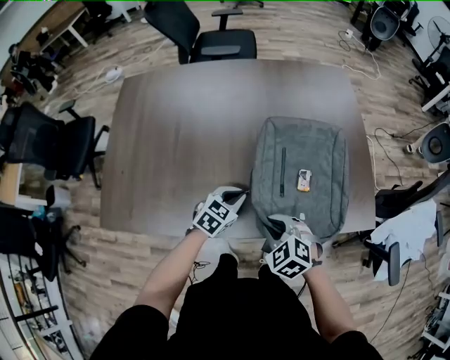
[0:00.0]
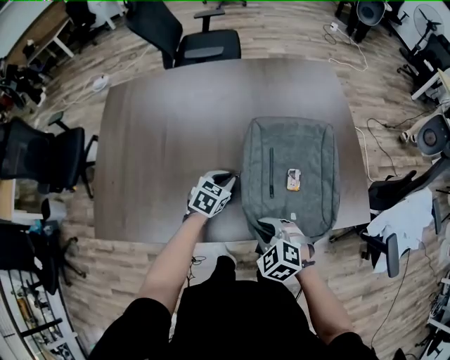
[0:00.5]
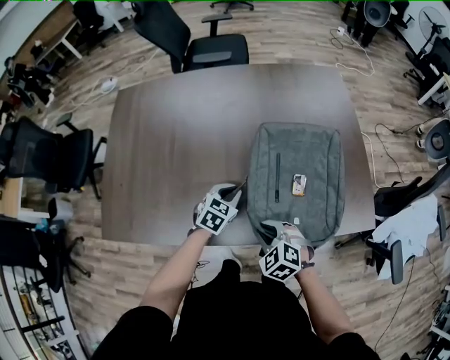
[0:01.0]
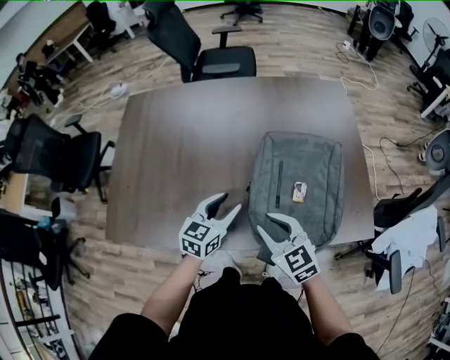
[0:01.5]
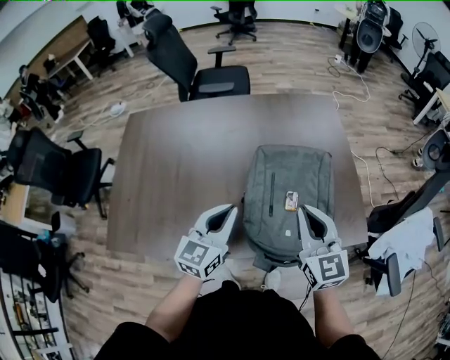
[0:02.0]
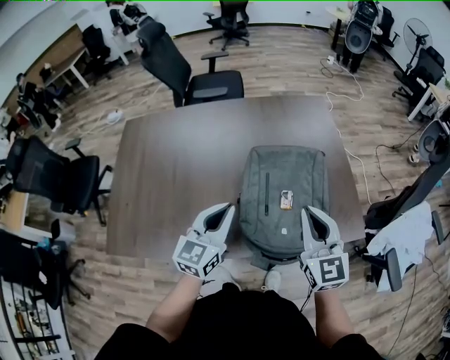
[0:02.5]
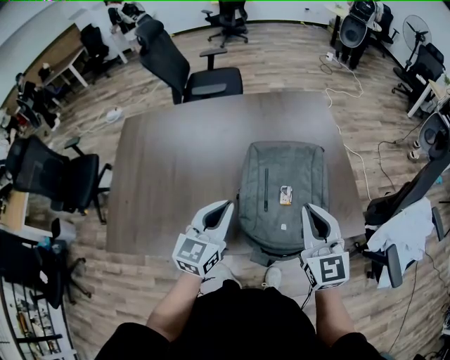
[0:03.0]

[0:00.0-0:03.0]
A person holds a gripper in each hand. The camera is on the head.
0:00.0 to 0:01.5: The grippers both shift upward by approximately 10 cm. The left gripper changes its angle by roughly 30 degrees, and opens its fingers; the right gripper changes its angle by roughly 30 degrees.
0:01.5 to 0:03.0: The right gripper goes roughly 20 cm upward and to the right, rotates roughly 40 degrees, and closes. The left gripper is displaced upward by roughly 10 cm, and closes.

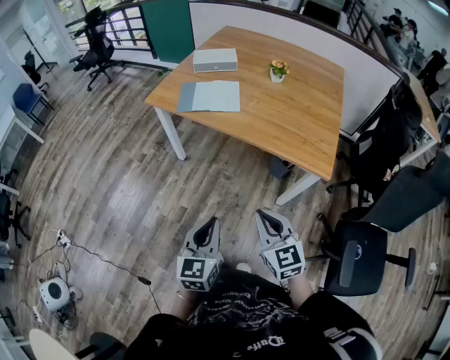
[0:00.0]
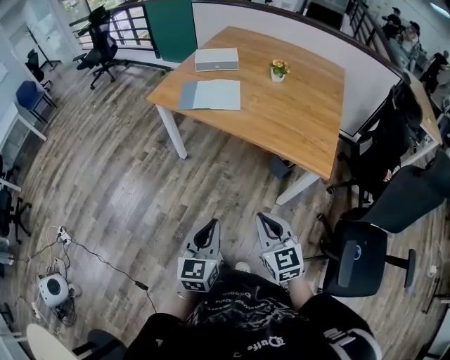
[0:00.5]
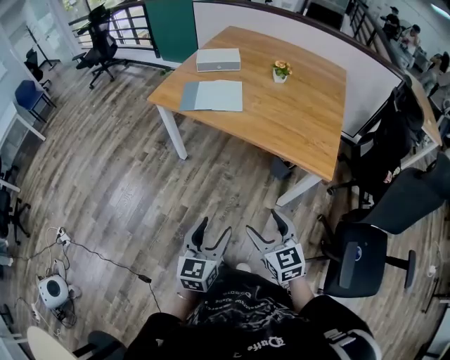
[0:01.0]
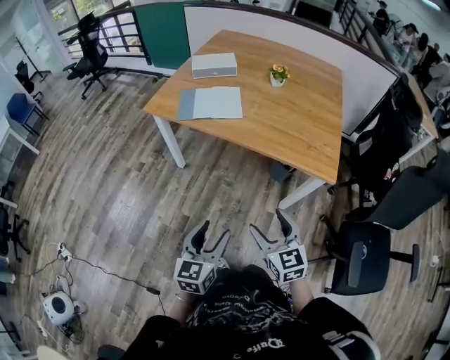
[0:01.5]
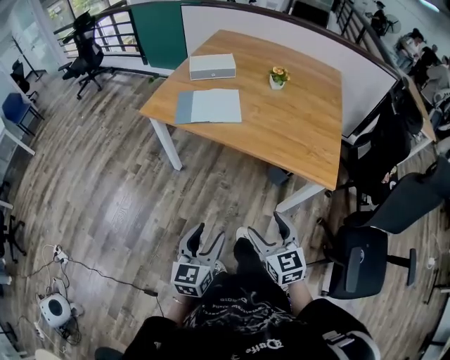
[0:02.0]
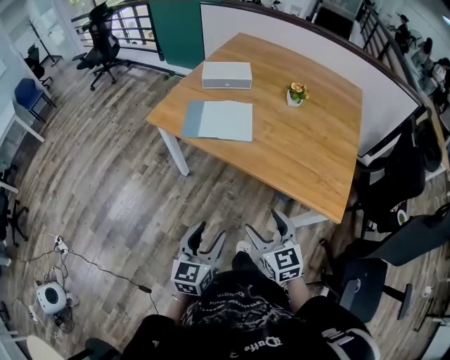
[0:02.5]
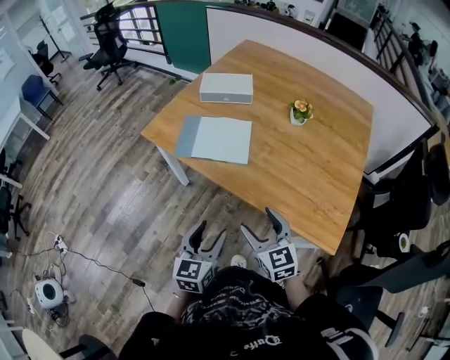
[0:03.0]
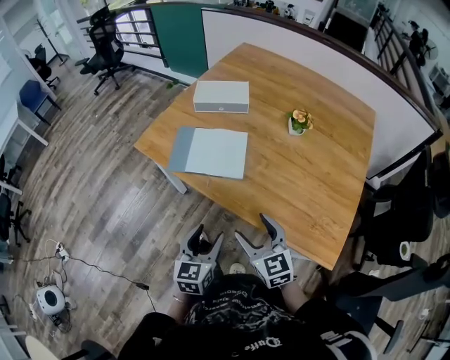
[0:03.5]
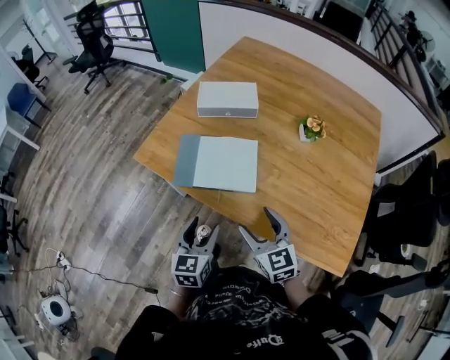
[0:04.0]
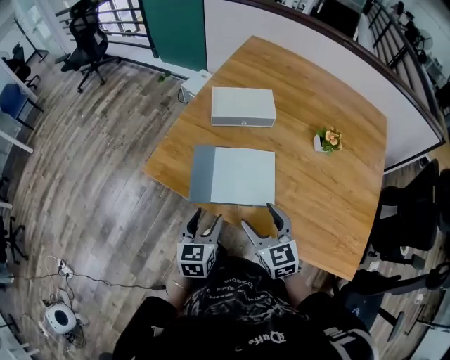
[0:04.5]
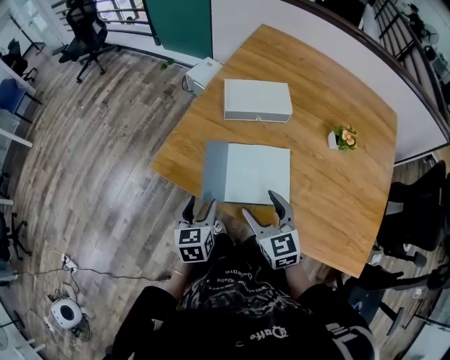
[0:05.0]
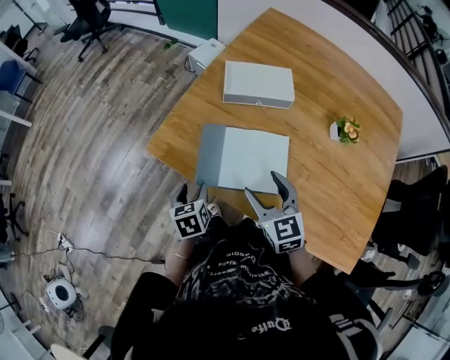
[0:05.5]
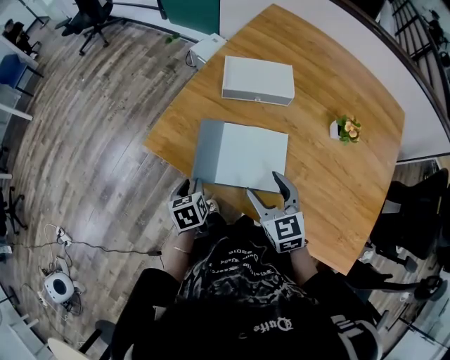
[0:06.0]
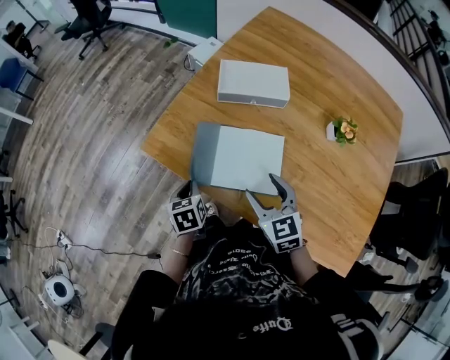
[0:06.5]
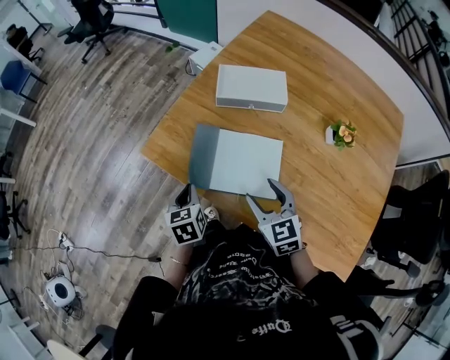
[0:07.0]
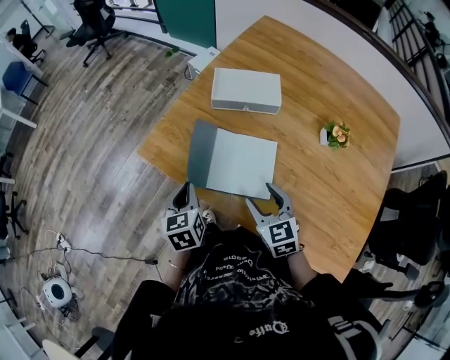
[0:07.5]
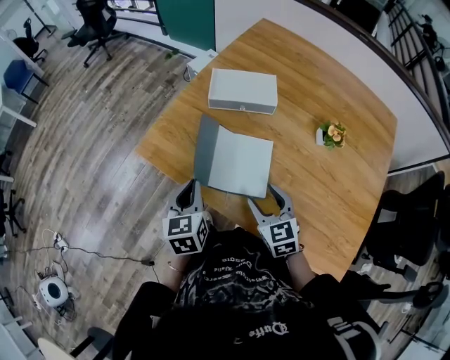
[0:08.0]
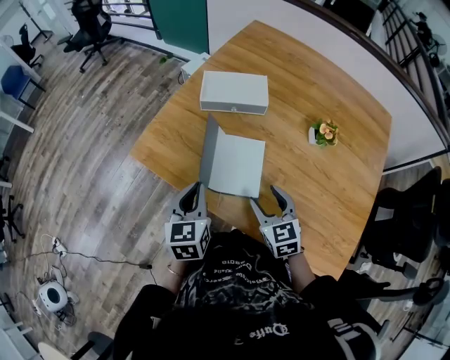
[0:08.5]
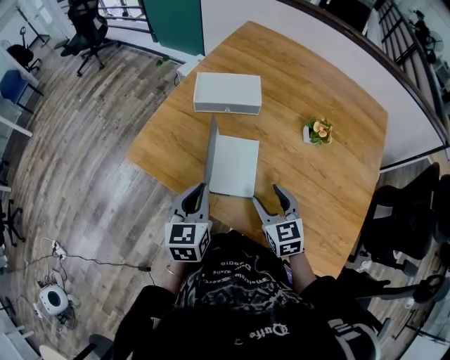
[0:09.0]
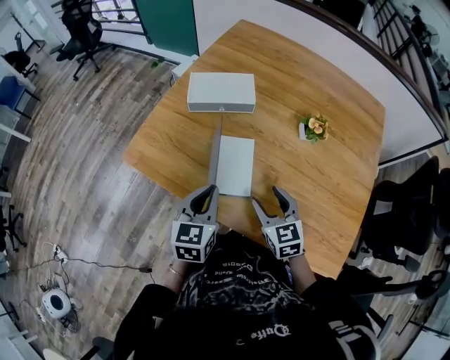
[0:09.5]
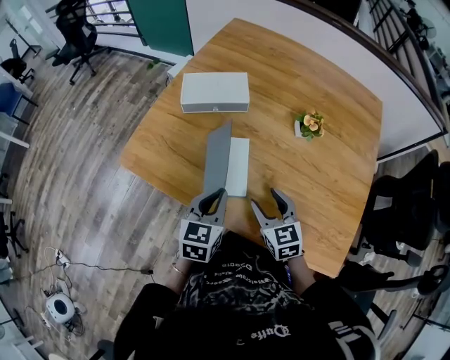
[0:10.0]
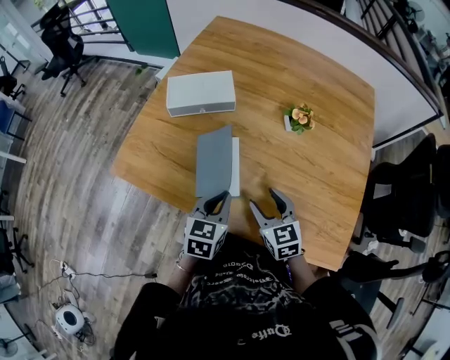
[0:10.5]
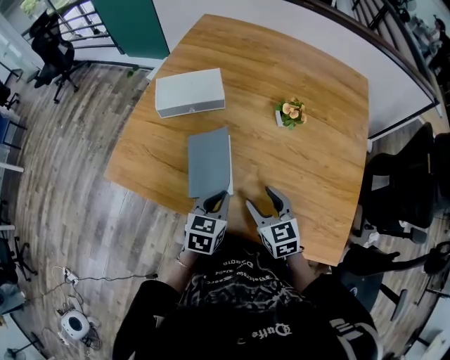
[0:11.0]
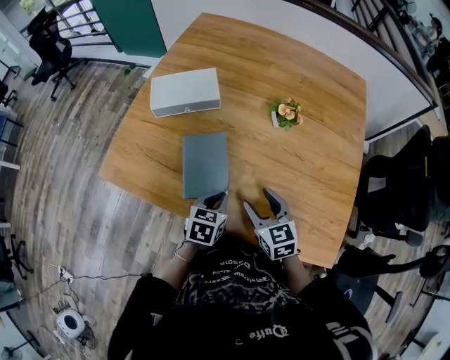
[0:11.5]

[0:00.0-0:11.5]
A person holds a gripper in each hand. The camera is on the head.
0:00.0 to 0:02.0: The right gripper moves roughly 5 cm, and opens; the left gripper moves forward, about 5 cm, and opens.
0:02.0 to 0:04.0: Both grippers move forward, approximately 35 cm.
0:04.0 to 0:06.0: The right gripper is displaced forward by some 15 cm; the left gripper shifts some 25 cm forward, to the left and downward, turns by about 40 degrees, and closes its fingers.
0:06.0 to 0:07.5: The left gripper heads upward, covering about 10 cm, and closes its fingers.
0:07.5 to 0:09.5: The right gripper moves to the right, about 10 cm. Meanwhile the left gripper travels to the right by roughly 15 cm, and changes its angle by about 30 degrees.
0:09.5 to 0:11.5: The left gripper moves downward and to the right, some 15 cm, and rotates roughly 30 degrees. The right gripper is displaced to the right by about 5 cm.

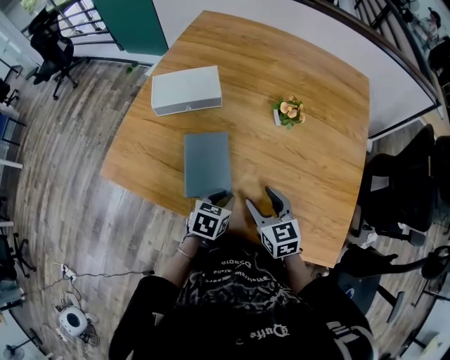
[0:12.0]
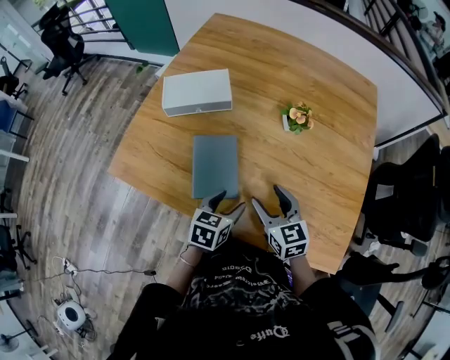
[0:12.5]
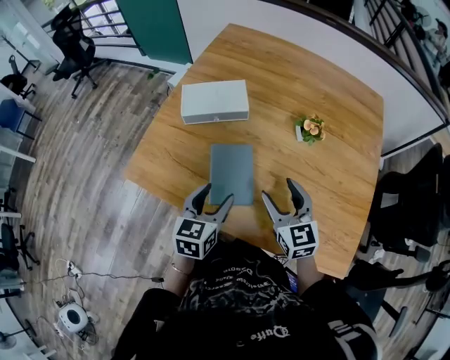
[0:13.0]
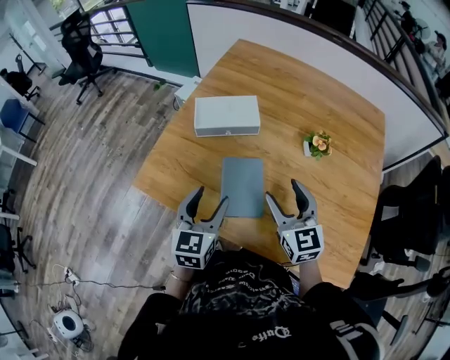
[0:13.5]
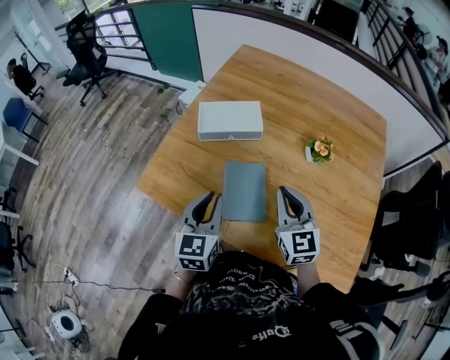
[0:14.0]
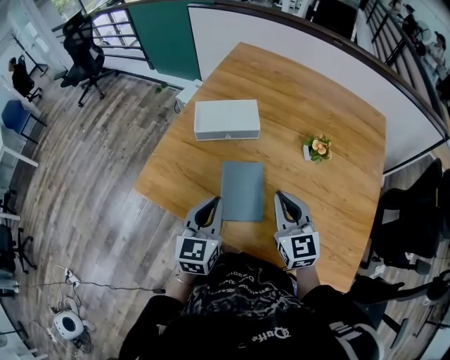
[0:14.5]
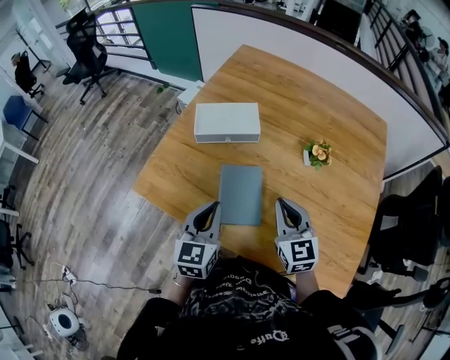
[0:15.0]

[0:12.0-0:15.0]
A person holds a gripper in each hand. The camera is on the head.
0:12.0 to 0:13.5: The left gripper goes roughly 25 cm upward and to the left, tilts its fingers about 30 degrees upward, and opens up. Meanwhile the right gripper is displaced upward, to the left and forward by about 15 cm.
0:13.5 to 0:15.0: The right gripper closes its fingers, while the left gripper closes up.

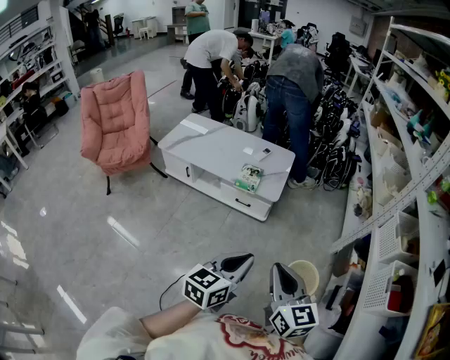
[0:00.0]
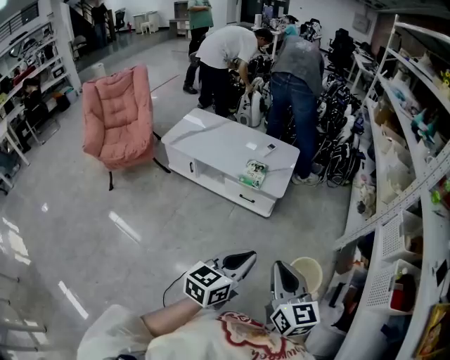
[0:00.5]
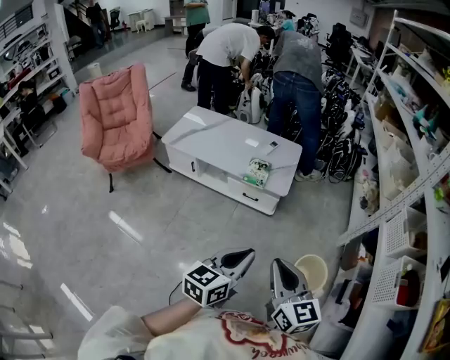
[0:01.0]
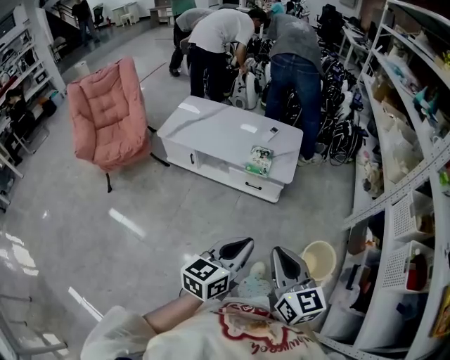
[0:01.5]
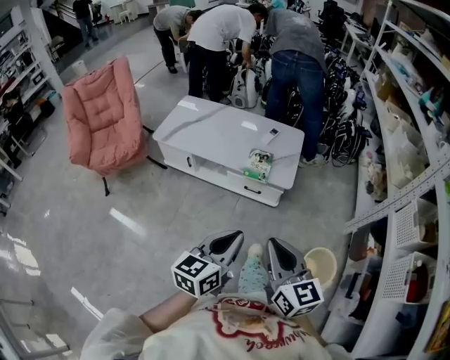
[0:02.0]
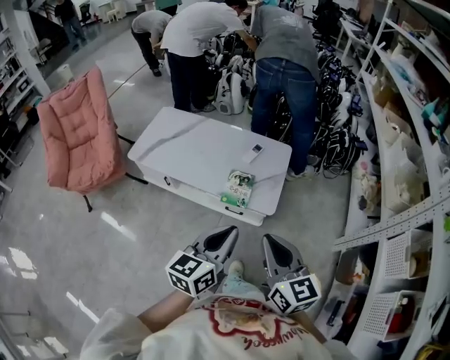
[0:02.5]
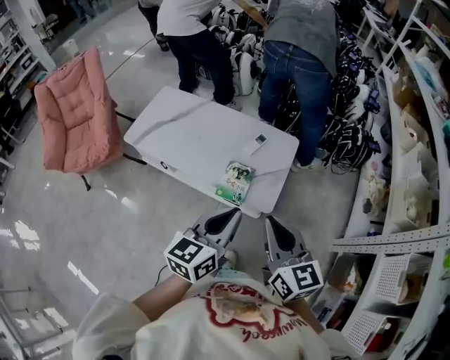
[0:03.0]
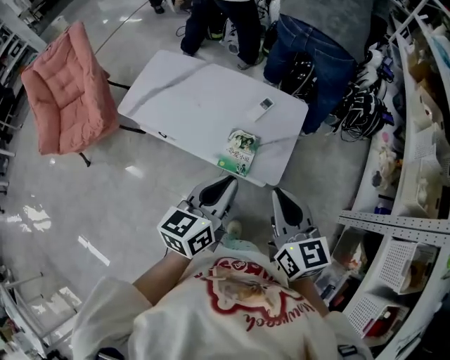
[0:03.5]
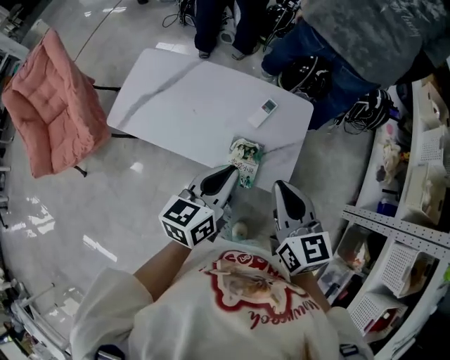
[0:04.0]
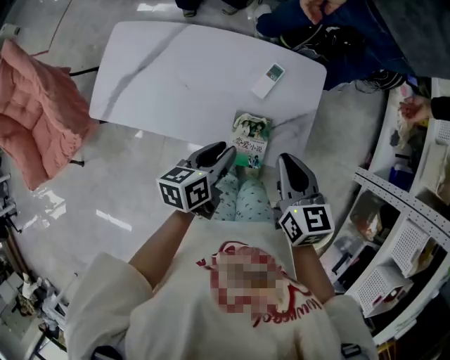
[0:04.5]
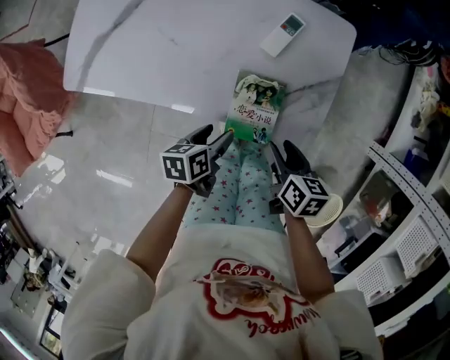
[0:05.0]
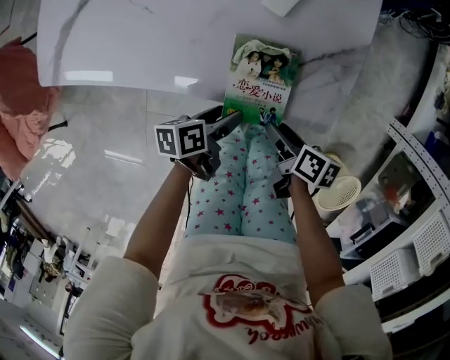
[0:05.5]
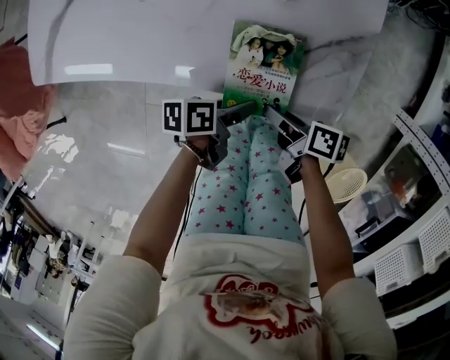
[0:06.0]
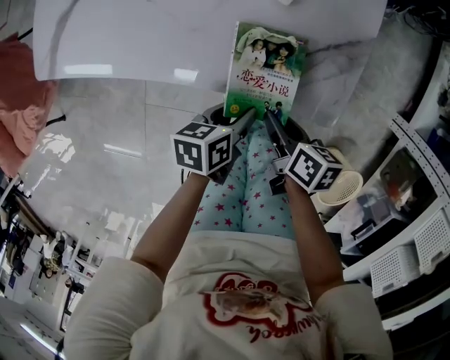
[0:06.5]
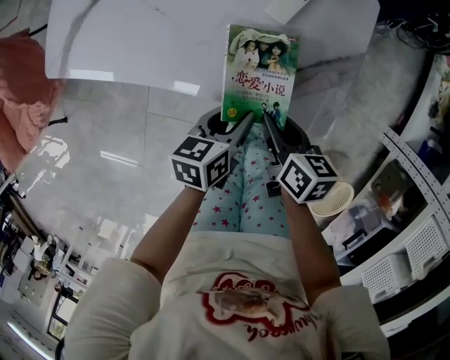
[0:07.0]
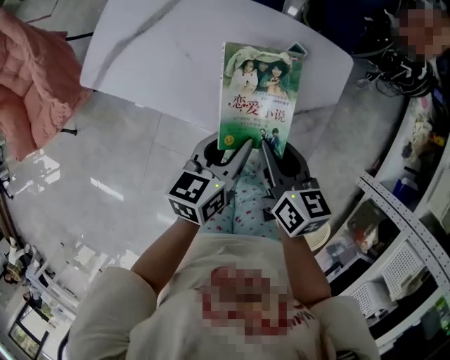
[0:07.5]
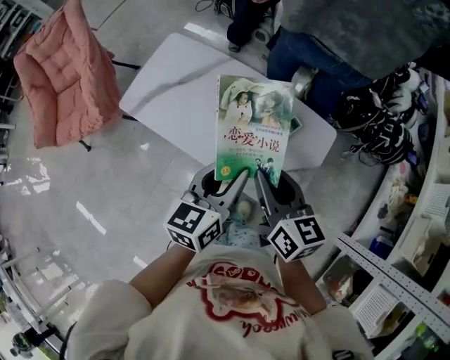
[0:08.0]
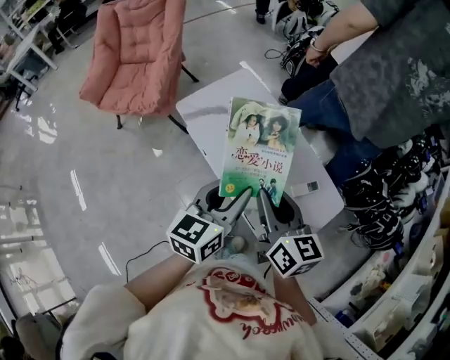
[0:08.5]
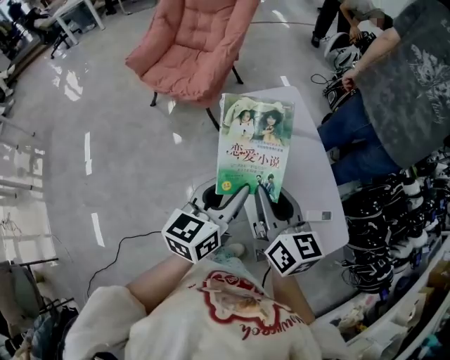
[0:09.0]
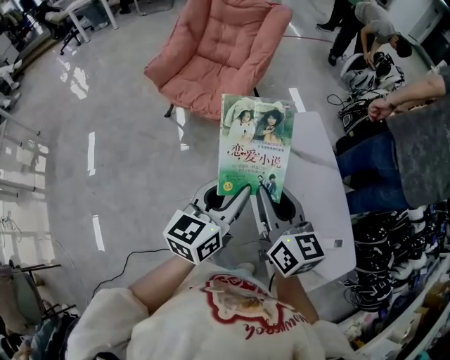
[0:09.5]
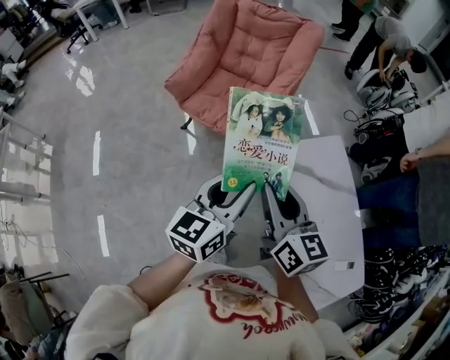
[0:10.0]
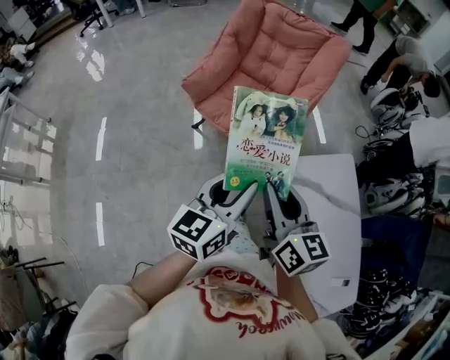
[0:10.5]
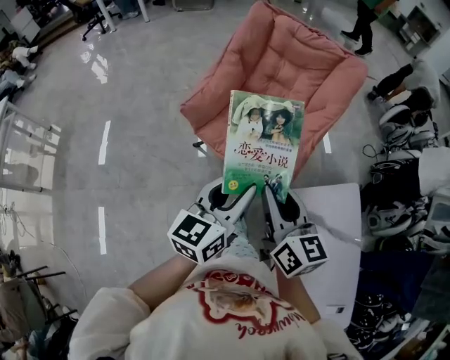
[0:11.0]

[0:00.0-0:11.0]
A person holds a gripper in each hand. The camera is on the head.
0:00.0 to 0:02.0: The grippers both shift to the left and forward by some 20 cm.
0:02.0 to 0:03.5: The two grippers go roughly 35 cm forward.
0:03.5 to 0:05.5: Both grippers travel together downward, roughly 50 cm. The left gripper turns by roughly 60 degrees, and opens its fingers; the right gripper rolls clockwise, seen from behind, by approximately 60 degrees, and opens its fingers.
0:05.5 to 0:07.5: Both grippers move upward, some 25 cm. The left gripper swivels about 40 degrees, and closes its fingers; the right gripper swivels about 40 degrees, and closes.
0:07.5 to 0:09.0: The right gripper shifts by about 40 cm, and turns by some 50 degrees. The left gripper shifts by approximately 40 cm, and changes its angle by about 50 degrees.
0:09.0 to 0:11.0: Both grippers are carried forward and to the left, roughly 50 cm.
